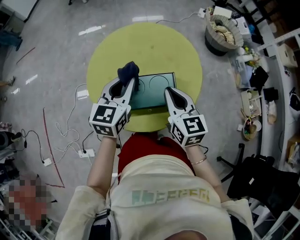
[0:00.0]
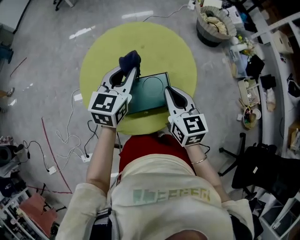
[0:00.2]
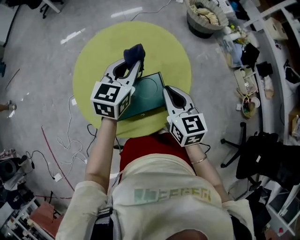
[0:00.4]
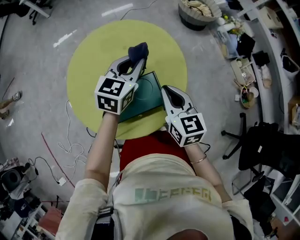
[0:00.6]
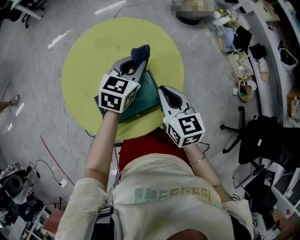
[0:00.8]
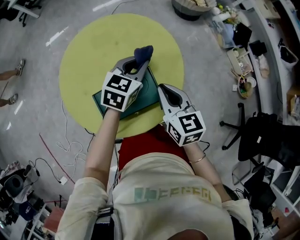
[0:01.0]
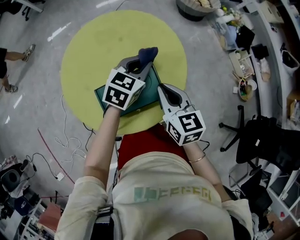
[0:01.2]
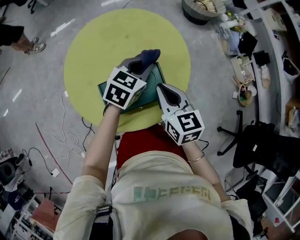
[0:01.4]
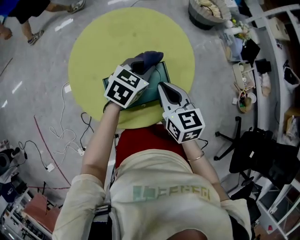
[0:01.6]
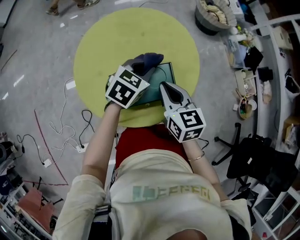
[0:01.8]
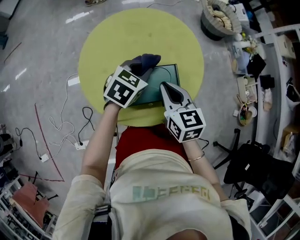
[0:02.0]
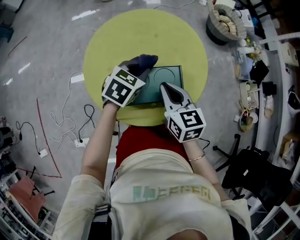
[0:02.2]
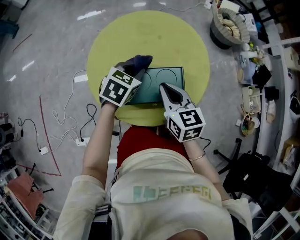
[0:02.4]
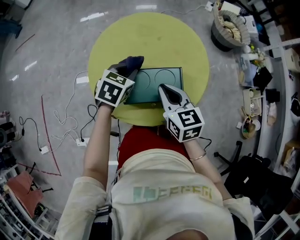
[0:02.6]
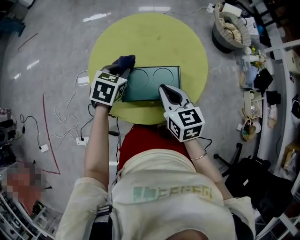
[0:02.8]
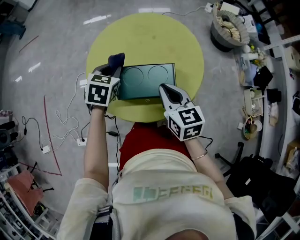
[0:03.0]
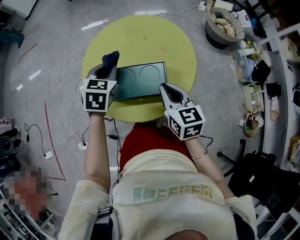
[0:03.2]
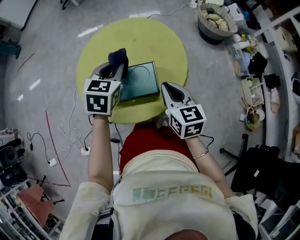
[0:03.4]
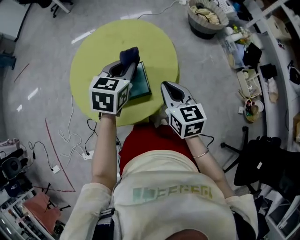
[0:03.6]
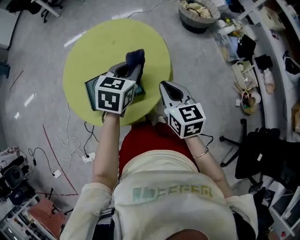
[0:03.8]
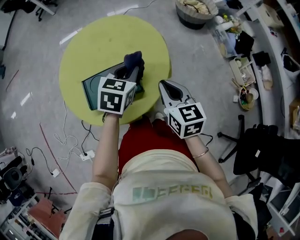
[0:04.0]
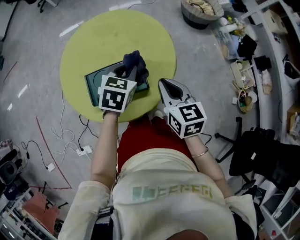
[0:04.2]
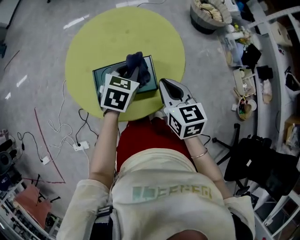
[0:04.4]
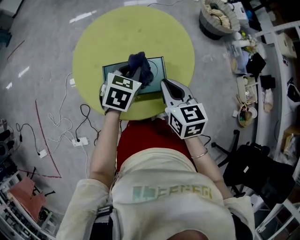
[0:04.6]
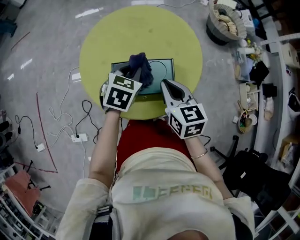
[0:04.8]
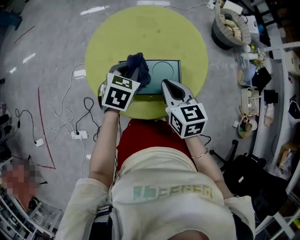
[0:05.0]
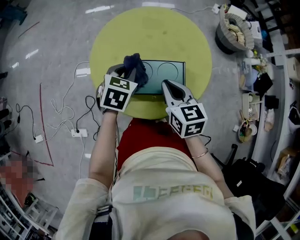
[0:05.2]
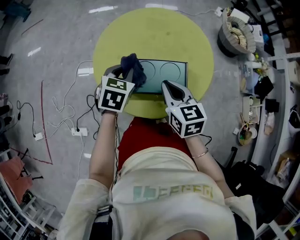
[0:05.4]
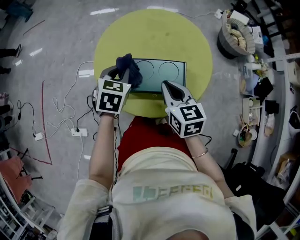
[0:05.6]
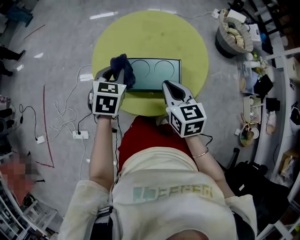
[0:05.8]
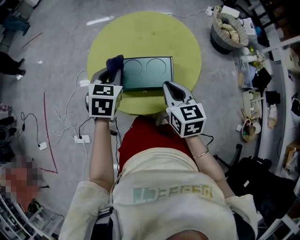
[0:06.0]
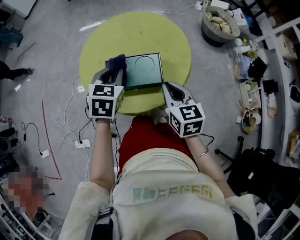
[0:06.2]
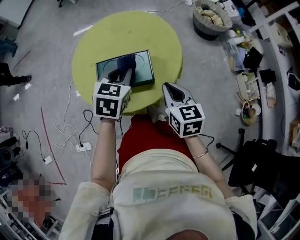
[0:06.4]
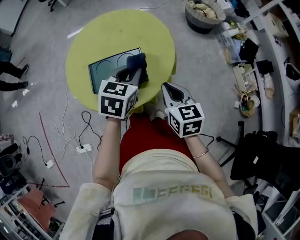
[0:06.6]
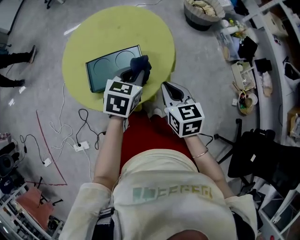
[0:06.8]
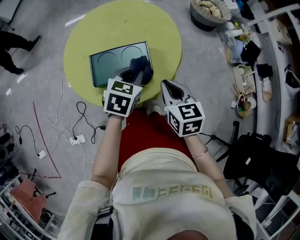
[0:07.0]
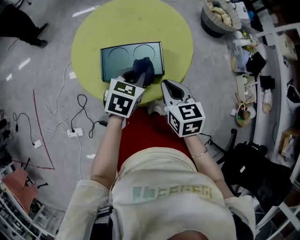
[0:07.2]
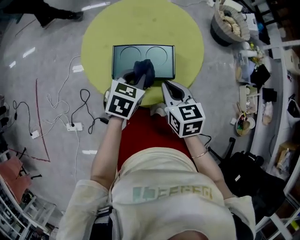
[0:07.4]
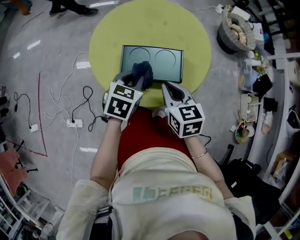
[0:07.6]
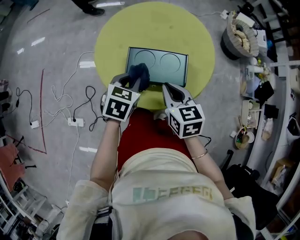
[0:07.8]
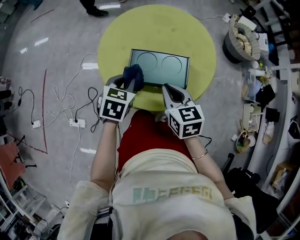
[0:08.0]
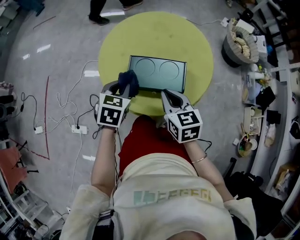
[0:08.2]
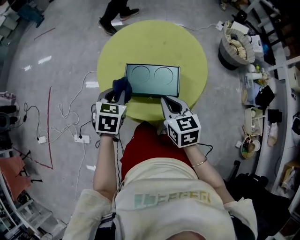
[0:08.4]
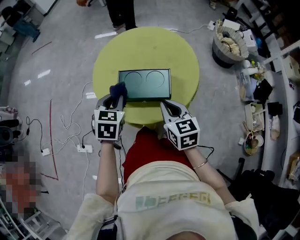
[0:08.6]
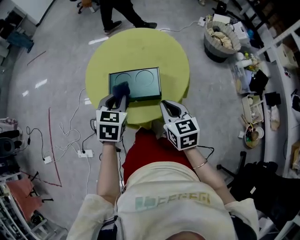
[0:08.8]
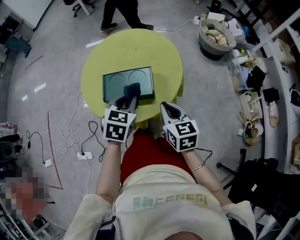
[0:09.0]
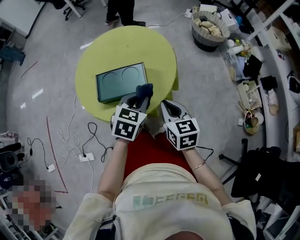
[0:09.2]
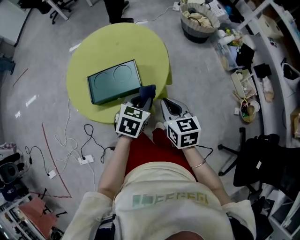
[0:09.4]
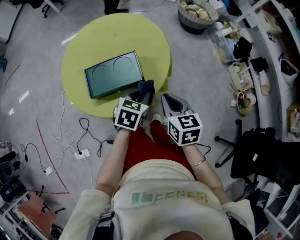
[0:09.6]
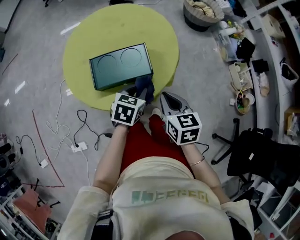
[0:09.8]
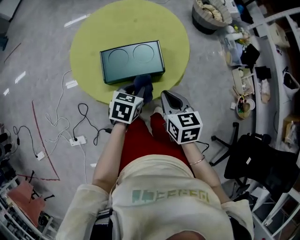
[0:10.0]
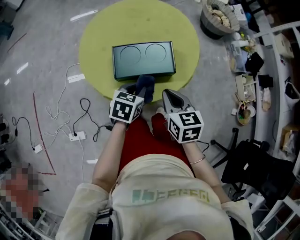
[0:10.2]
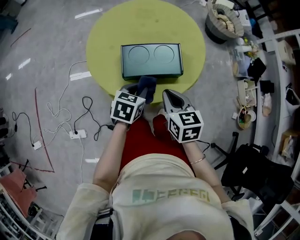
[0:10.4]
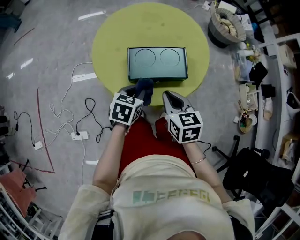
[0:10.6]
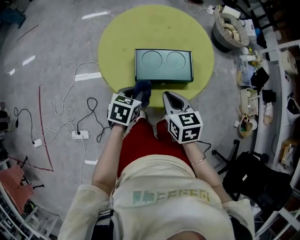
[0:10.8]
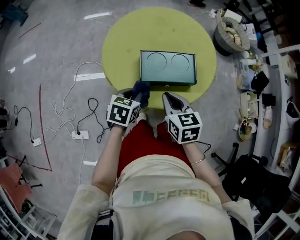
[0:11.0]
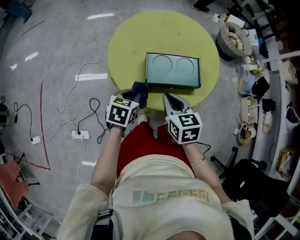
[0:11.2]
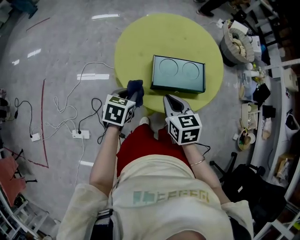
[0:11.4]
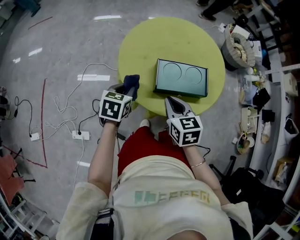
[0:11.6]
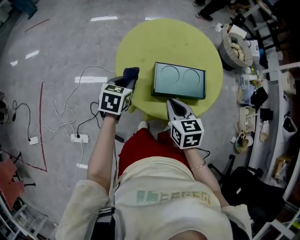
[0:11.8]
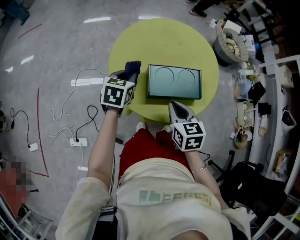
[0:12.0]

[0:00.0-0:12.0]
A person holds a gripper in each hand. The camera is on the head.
0:00.0 to 0:01.6: The left gripper heads to the right, downward and forward, covering some 15 cm, and turns by approximately 40 degrees.
0:01.6 to 0:03.0: The left gripper ends up some 15 cm from where it was, and turns by roughly 40 degrees.
0:03.0 to 0:04.4: The left gripper shifts approximately 15 cm to the right. The right gripper goes some 10 cm to the right.
0:04.4 to 0:06.0: The right gripper shifts approximately 5 cm to the left, while the left gripper is displaced to the left by some 15 cm, and rotates roughly 20 degrees.
0:06.0 to 0:07.6: The right gripper reaches about 10 cm to the right, then returns. Meanwhile the left gripper shifts about 5 cm downward, and goes to the right and returns, roughly 20 cm each way.
0:07.6 to 0:09.0: The left gripper shifts about 10 cm to the right, upward and backward, while the right gripper shifts about 15 cm to the right and backward.
0:09.0 to 0:10.4: The right gripper shifts about 15 cm to the left, while the left gripper shifts about 15 cm downward and to the left, and changes its angle by roughly 20 degrees.
0:10.4 to 0:12.0: The right gripper is displaced to the left by some 10 cm; the left gripper heads to the left and forward, covering about 25 cm.

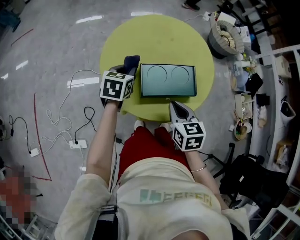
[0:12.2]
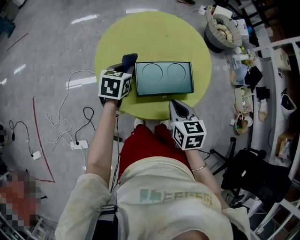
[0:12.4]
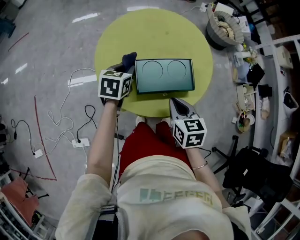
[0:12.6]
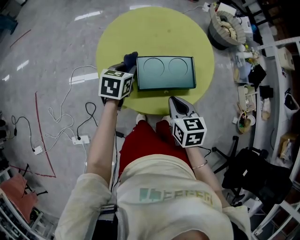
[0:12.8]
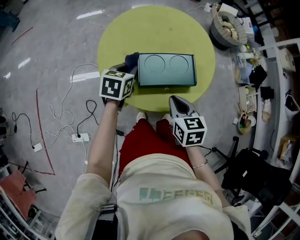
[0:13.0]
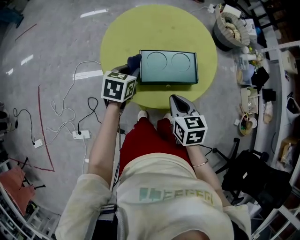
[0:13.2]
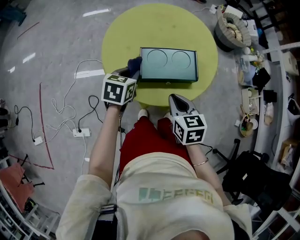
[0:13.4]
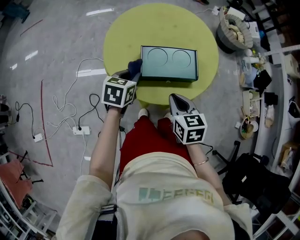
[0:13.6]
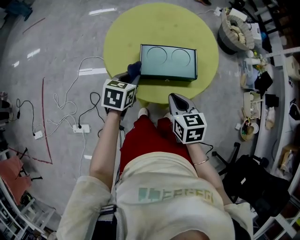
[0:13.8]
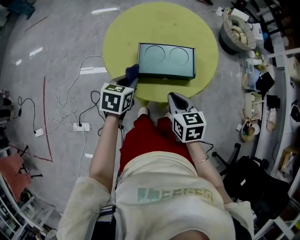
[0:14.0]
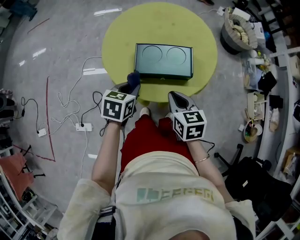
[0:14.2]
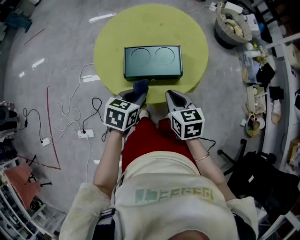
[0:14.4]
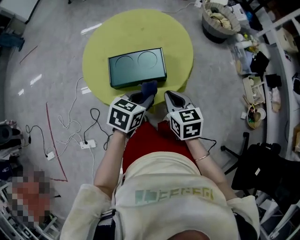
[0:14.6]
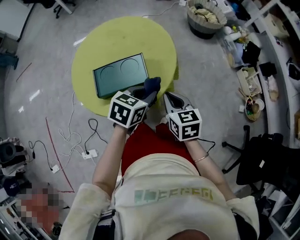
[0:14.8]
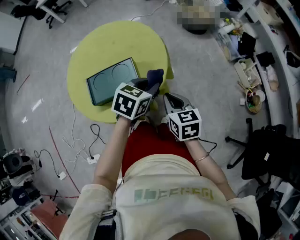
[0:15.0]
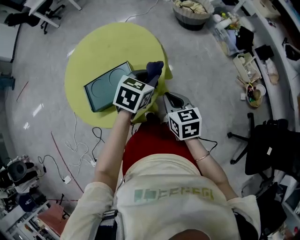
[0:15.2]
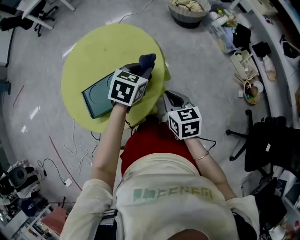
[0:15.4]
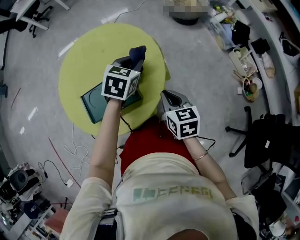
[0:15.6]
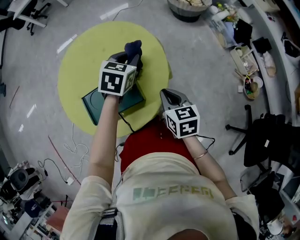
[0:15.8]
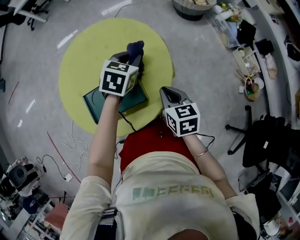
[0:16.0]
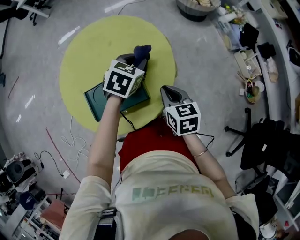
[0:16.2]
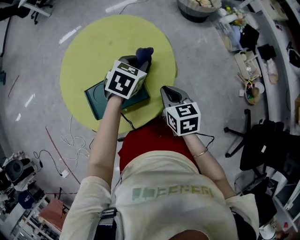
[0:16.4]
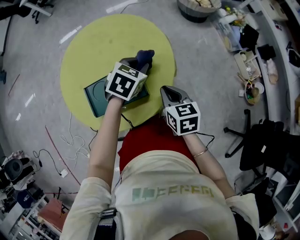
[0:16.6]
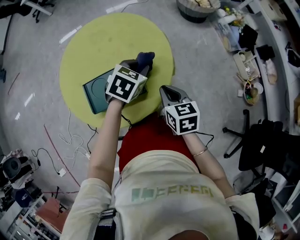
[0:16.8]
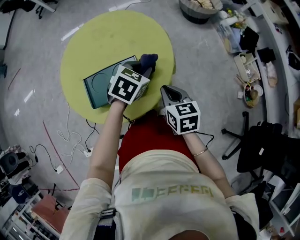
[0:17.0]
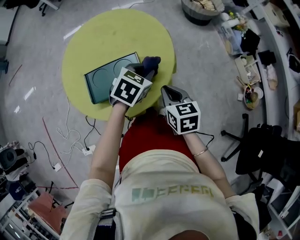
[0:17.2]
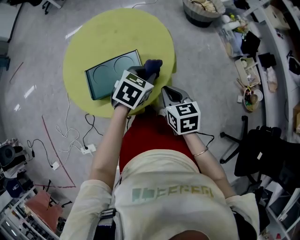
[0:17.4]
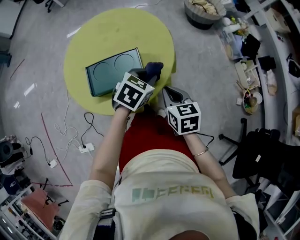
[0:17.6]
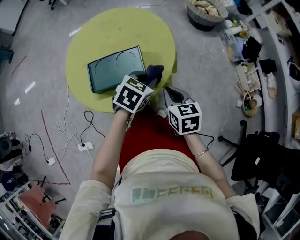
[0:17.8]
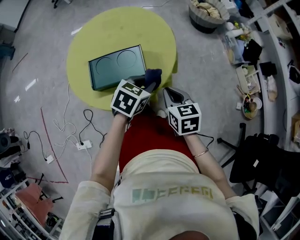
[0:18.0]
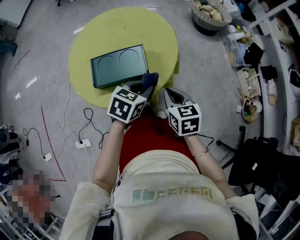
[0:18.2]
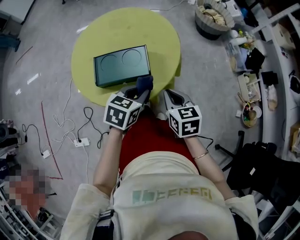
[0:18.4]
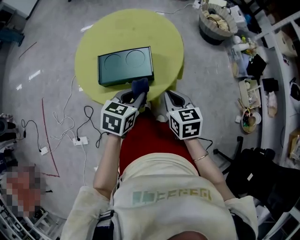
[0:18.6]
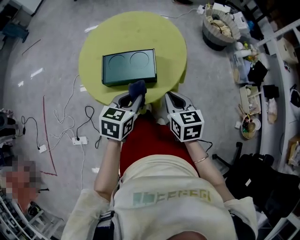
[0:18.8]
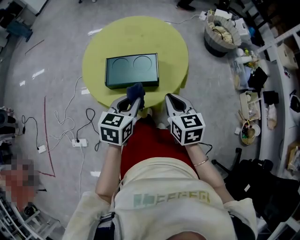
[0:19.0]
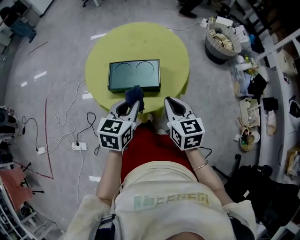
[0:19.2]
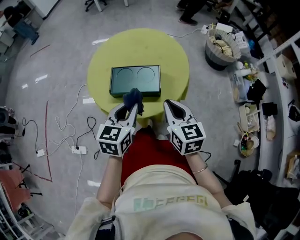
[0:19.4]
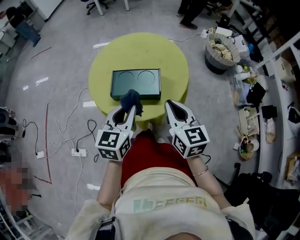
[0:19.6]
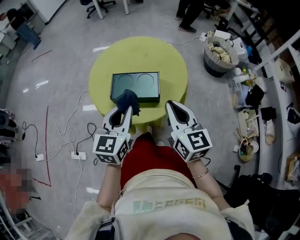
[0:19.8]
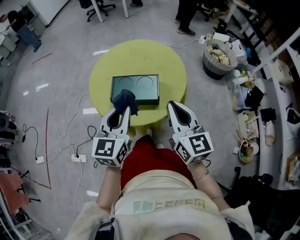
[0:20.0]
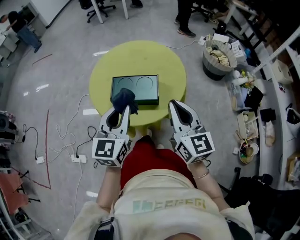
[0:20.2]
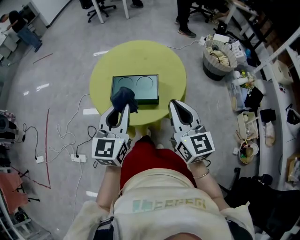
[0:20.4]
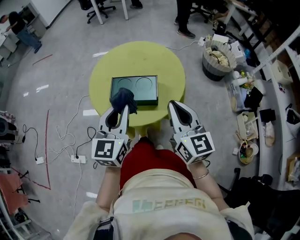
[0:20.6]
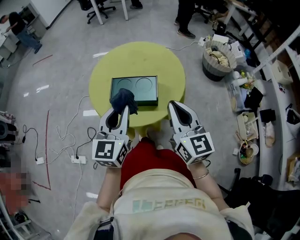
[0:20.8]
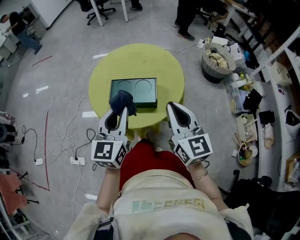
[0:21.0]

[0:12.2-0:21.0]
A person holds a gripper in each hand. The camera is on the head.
0:12.2 to 0:13.6: The left gripper is displaced backward and to the right by roughly 10 cm. The right gripper moves roughly 5 cm.
0:13.6 to 0:15.2: The right gripper heads to the right, covering some 25 cm, while the left gripper heads to the right, covering some 35 cm, and changes its angle by roughly 30 degrees.
0:15.2 to 0:16.6: The grippers both shift to the left and forward by roughly 10 cm.
0:16.6 to 0:18.0: The left gripper goes roughly 15 cm backward. Meanwhile the right gripper goes some 10 cm backward.
0:18.0 to 0:19.6: The right gripper heads upward, covering about 15 cm, and swivels about 30 degrees; the left gripper travels upward, to the left and backward by about 20 cm, and rotates about 50 degrees.
0:19.6 to 0:21.0: The two grippers go approximately 5 cm upward.

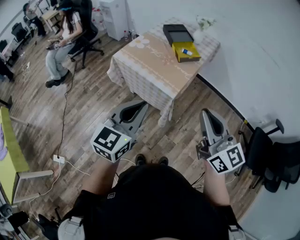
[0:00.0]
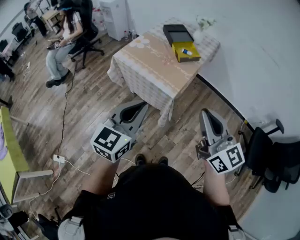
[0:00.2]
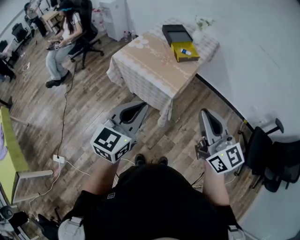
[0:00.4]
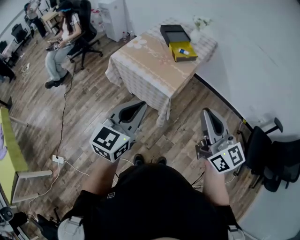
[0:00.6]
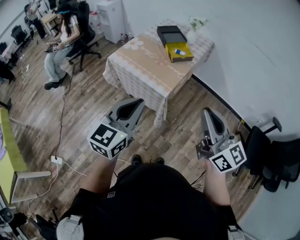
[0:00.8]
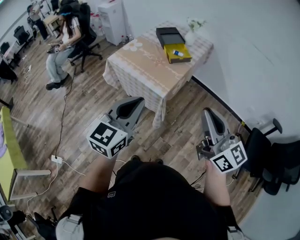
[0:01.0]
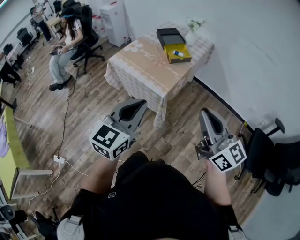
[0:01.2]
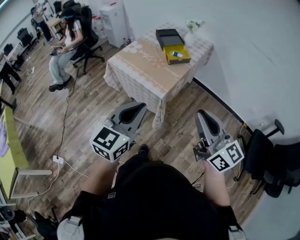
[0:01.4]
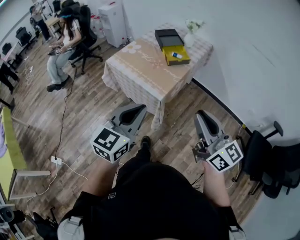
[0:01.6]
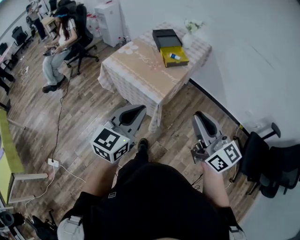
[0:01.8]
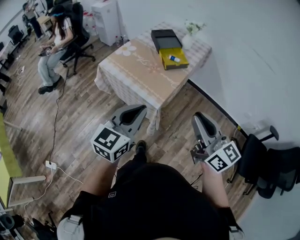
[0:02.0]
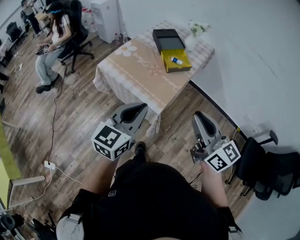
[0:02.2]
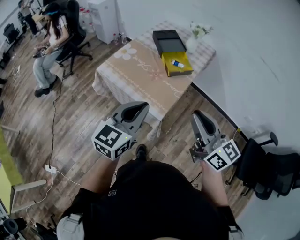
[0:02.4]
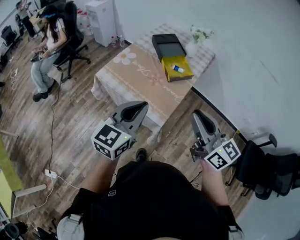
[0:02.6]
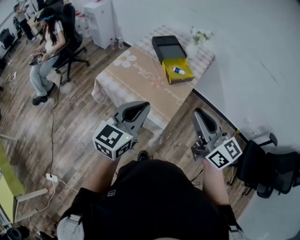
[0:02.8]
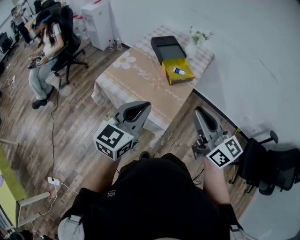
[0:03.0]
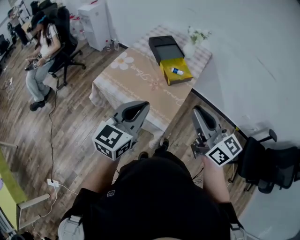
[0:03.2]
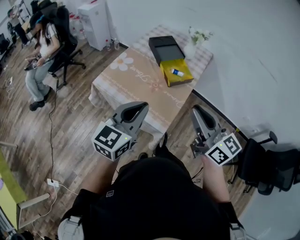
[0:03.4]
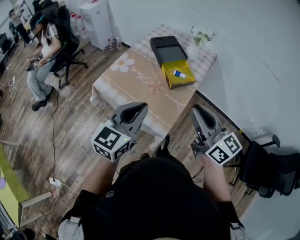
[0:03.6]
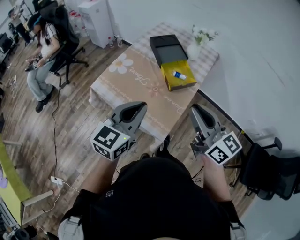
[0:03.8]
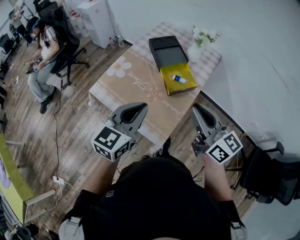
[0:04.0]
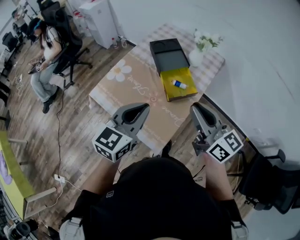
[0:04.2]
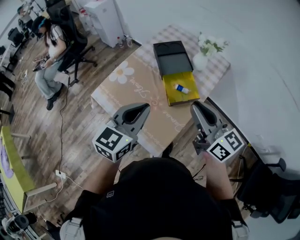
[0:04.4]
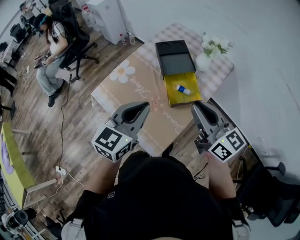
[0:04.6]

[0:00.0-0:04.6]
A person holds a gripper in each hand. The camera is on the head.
0:00.0 to 0:01.6: The two grippers go about 10 cm to the right.
0:01.6 to 0:03.0: Both grippers travel together forward, some 25 cm.
0:03.0 to 0:04.6: The two grippers go some 25 cm forward.
